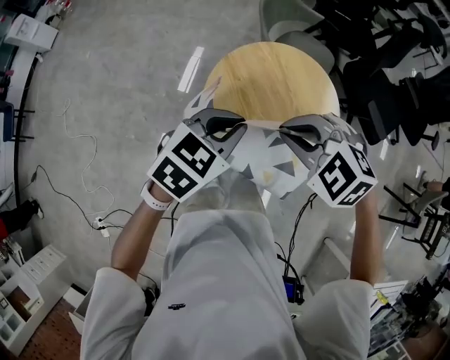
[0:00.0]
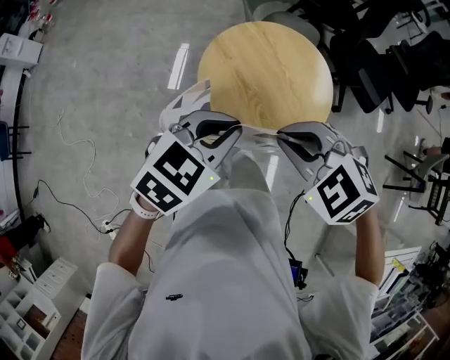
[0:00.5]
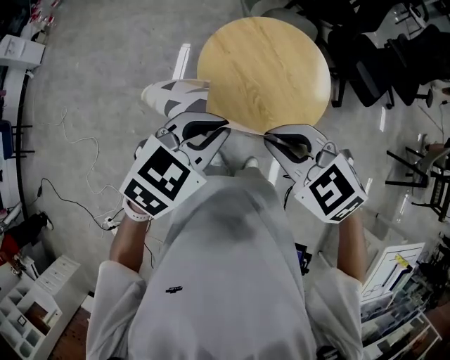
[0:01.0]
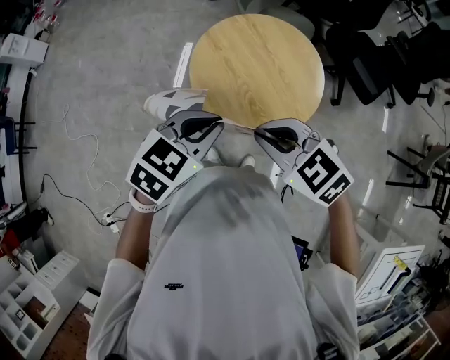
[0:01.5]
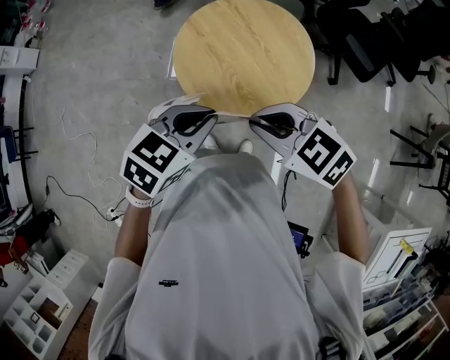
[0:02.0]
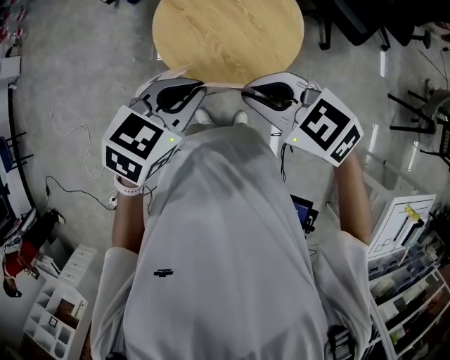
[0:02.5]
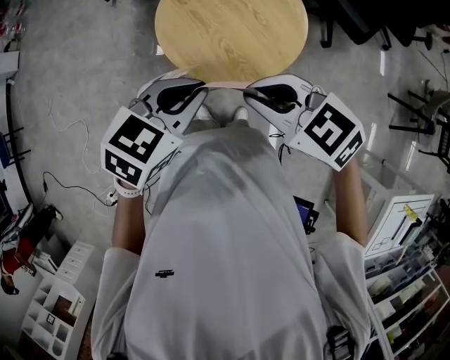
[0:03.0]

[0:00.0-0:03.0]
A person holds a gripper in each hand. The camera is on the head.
0:00.0 to 0:01.5: Both grippers move backward, roughly 15 cm. The right gripper turns by some 20 degrees.
0:01.5 to 0:03.0: The grippers move only a little.

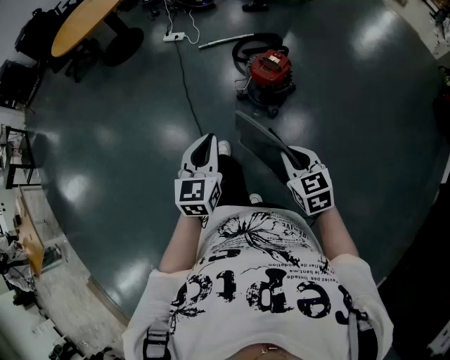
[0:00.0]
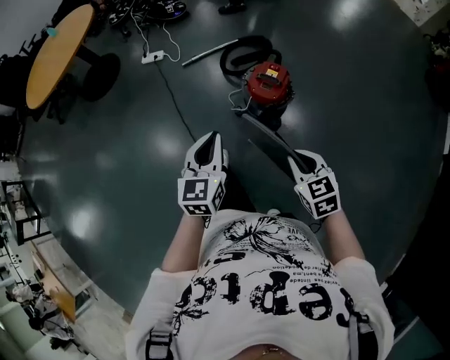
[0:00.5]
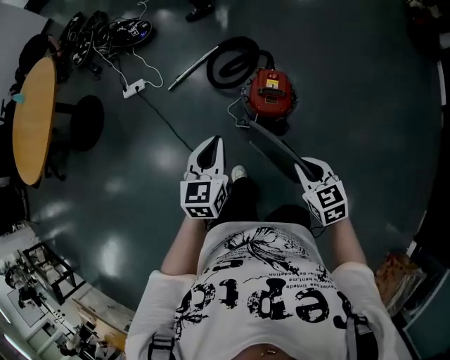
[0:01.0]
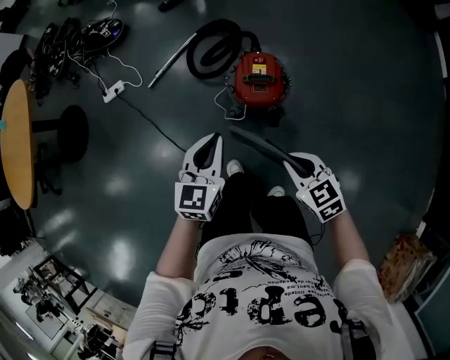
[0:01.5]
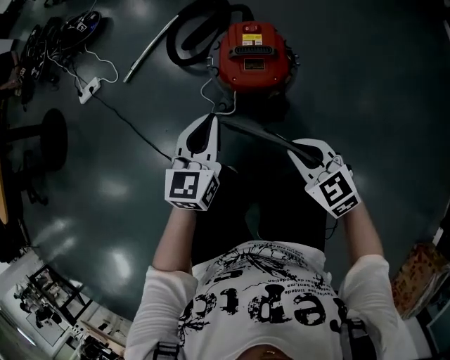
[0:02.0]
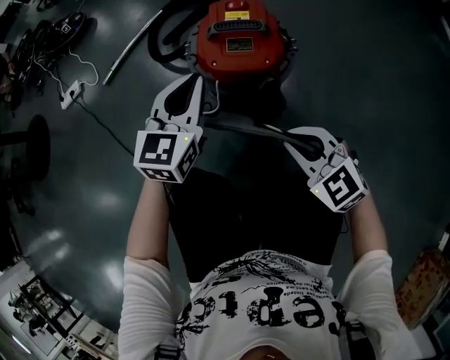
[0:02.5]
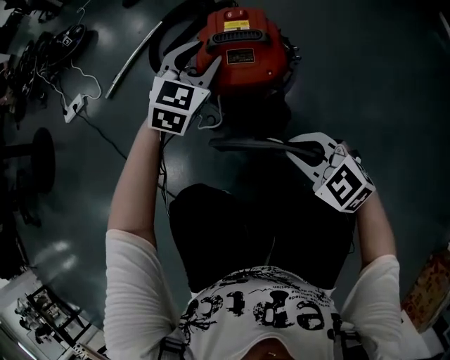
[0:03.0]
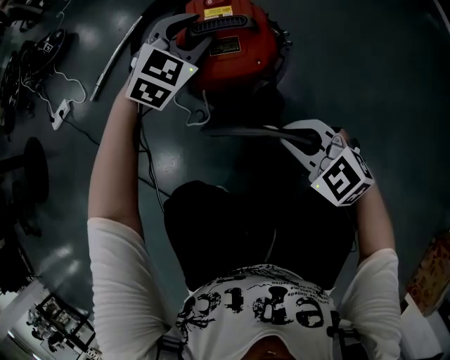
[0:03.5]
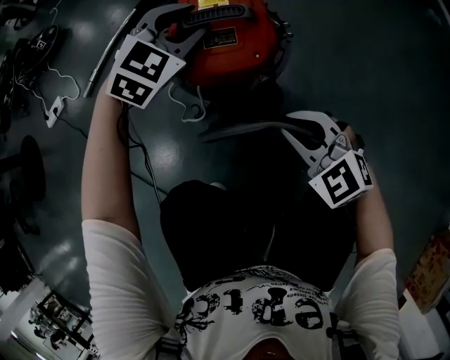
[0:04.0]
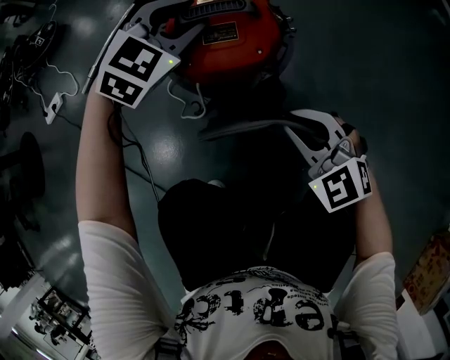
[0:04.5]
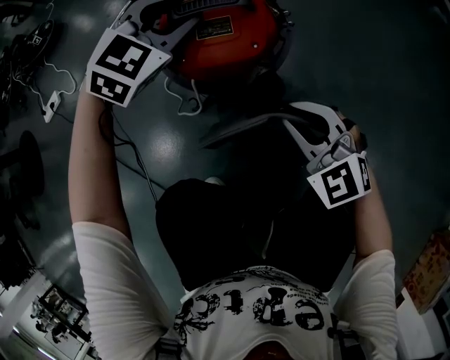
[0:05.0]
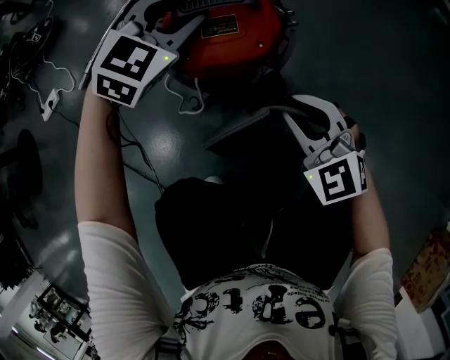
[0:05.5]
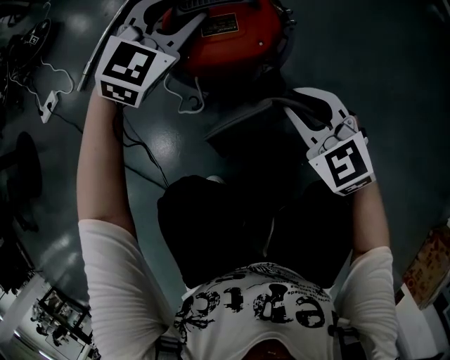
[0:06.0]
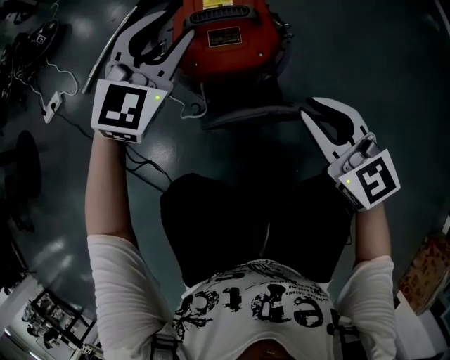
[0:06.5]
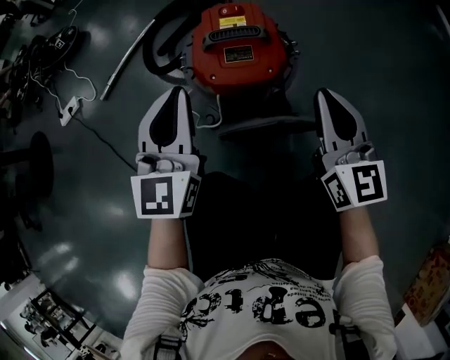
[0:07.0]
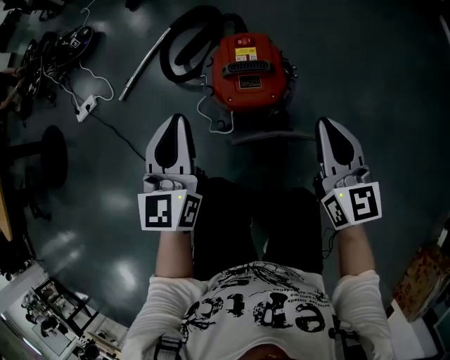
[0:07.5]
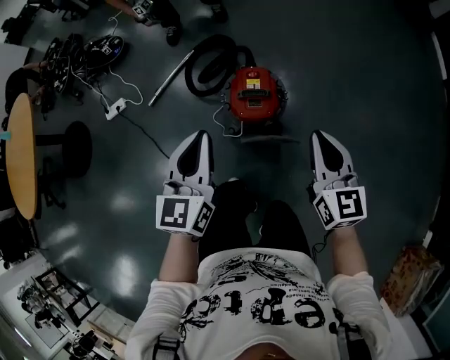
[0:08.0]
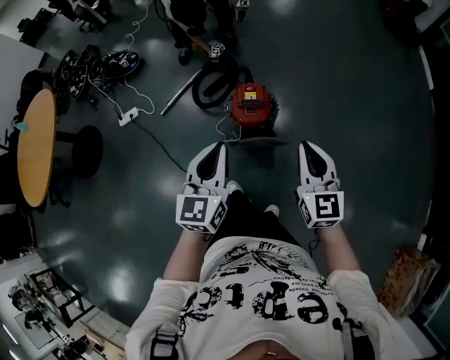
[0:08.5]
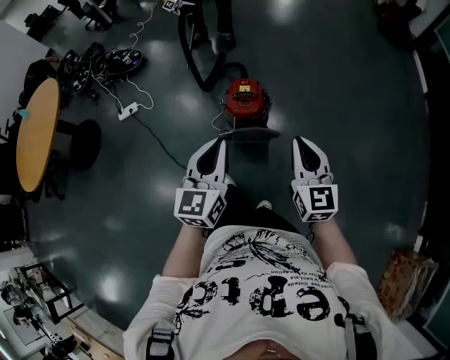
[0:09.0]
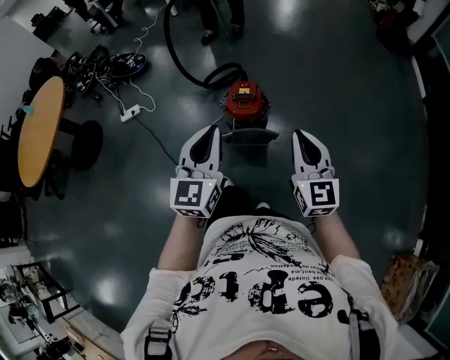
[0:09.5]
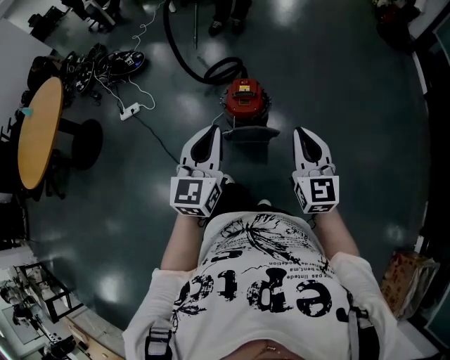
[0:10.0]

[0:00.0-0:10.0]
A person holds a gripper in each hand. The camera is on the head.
0:00.0 to 0:02.0: The left gripper moves roughly 60 cm, and turns by roughly 40 degrees. Meanwhile the right gripper is displaced downward by roughly 35 cm.
0:02.0 to 0:04.0: The right gripper heads downward, covering some 15 cm, and swivels roughly 20 degrees. Meanwhile the left gripper shifts about 25 cm forward, downward and to the right, rolls clockwise, seen from behind, by roughly 50 degrees, and opens up.
0:04.0 to 0:06.0: There are only small adjustments of the grippers.
0:06.0 to 0:08.0: The left gripper goes approximately 50 cm upward and backward, swivels about 50 degrees, and closes; the right gripper moves upward, roughly 50 cm, and rotates roughly 40 degrees.
0:08.0 to 0:10.0: The grippers both shift backward and upward by about 25 cm.

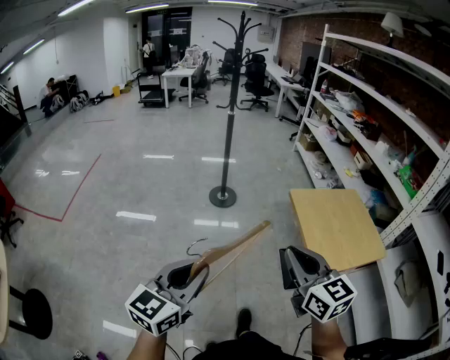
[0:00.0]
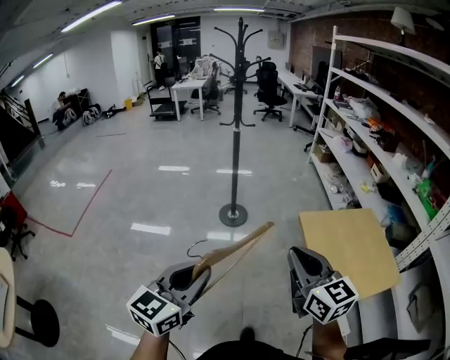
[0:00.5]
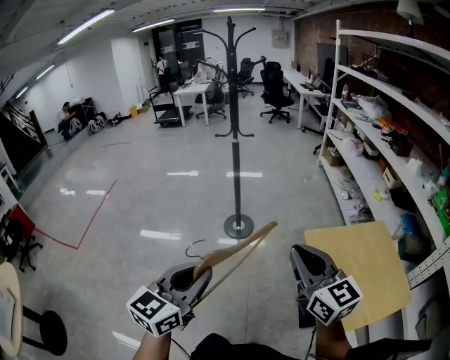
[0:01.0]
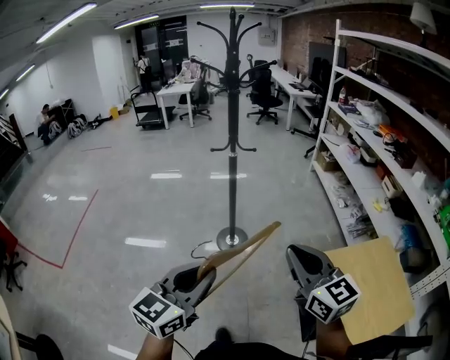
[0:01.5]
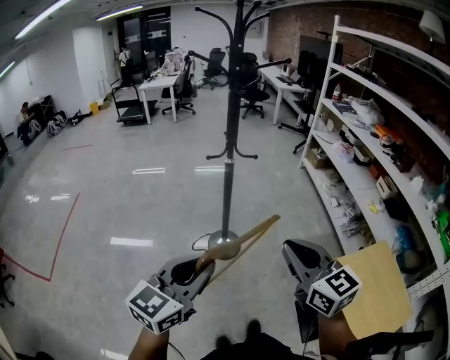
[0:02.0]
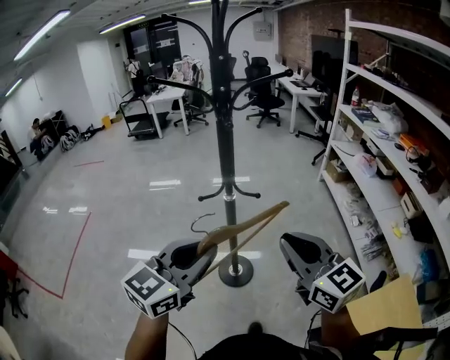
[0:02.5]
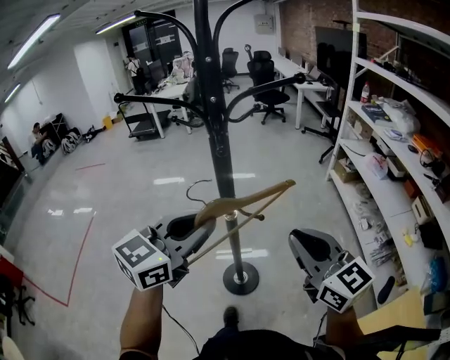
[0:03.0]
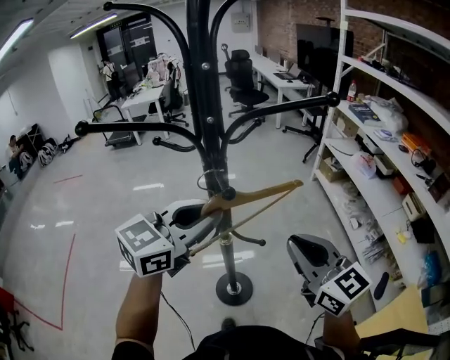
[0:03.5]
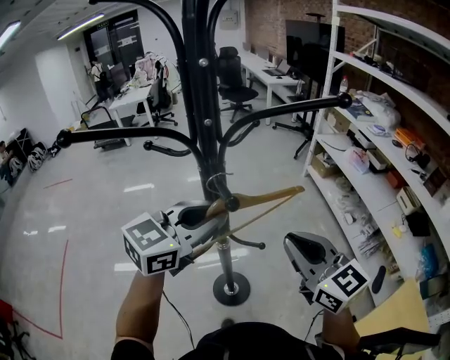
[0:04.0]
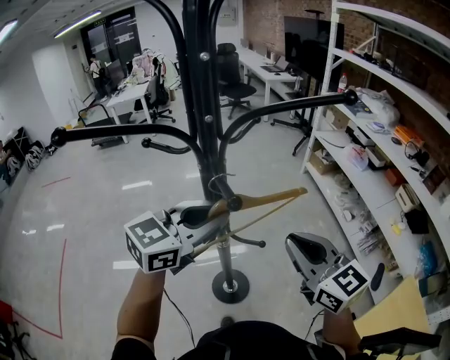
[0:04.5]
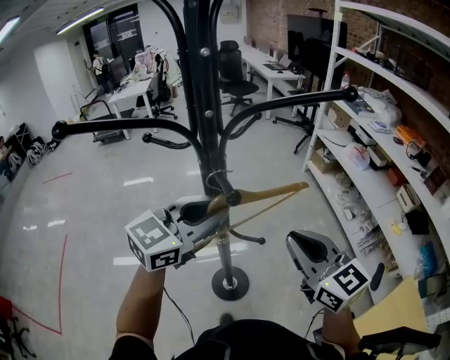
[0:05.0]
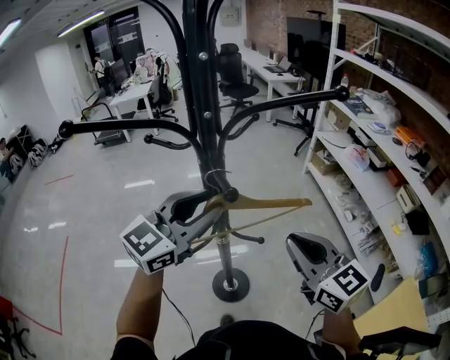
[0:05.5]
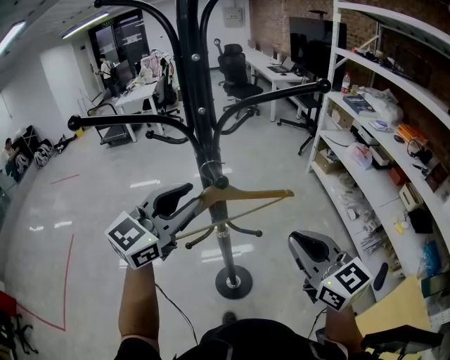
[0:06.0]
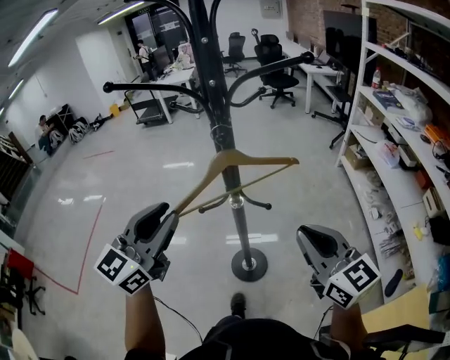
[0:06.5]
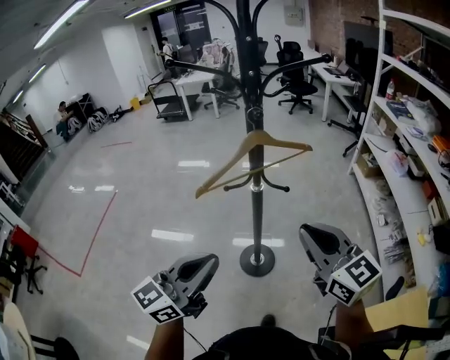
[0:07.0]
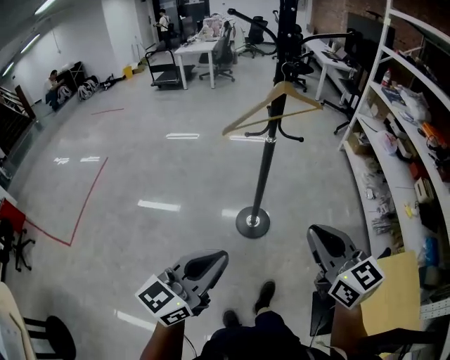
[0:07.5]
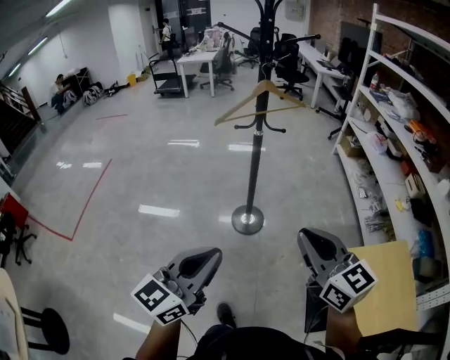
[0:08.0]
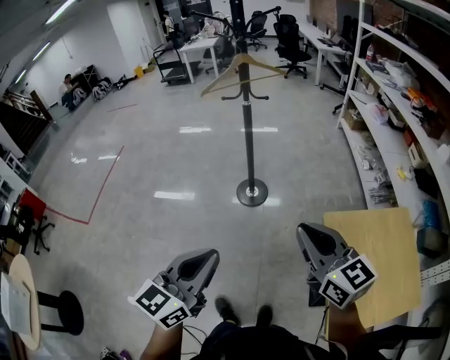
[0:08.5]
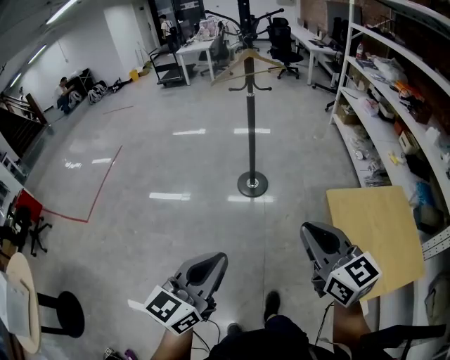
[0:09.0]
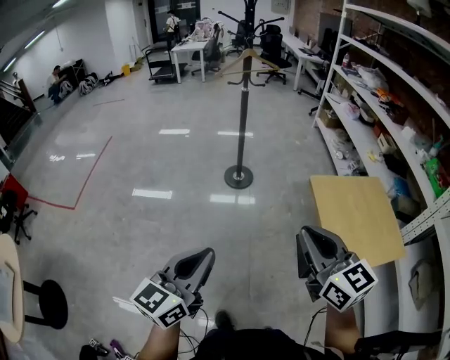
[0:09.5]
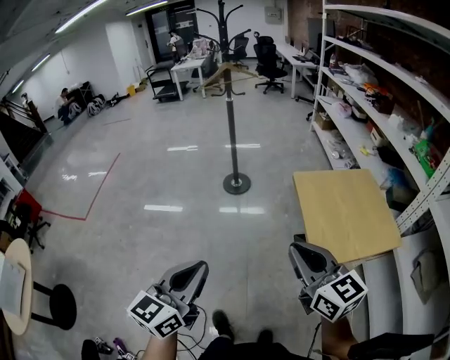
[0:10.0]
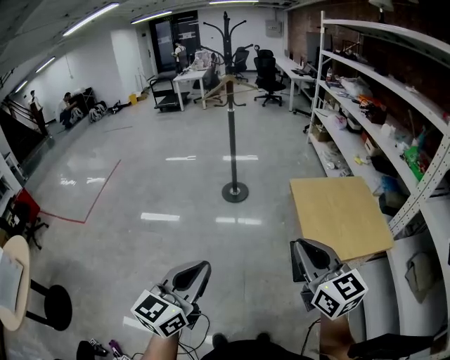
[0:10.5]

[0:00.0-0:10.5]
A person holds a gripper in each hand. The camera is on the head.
0:00.0 to 0:02.0: Both grippers are carried forward, approximately 50 cm.
0:02.0 to 0:04.0: The grippers both shift forward by about 40 cm. The left gripper swivels about 20 degrees.
0:04.0 to 0:06.5: The left gripper travels backward and to the left by some 20 cm, and swivels some 30 degrees. Meanwhile the right gripper moves backward, roughly 5 cm.
0:06.5 to 0:08.5: The pair of grippers is taken backward, some 50 cm. The left gripper closes its fingers.
0:08.5 to 0:10.5: Both grippers travel together backward, about 40 cm.

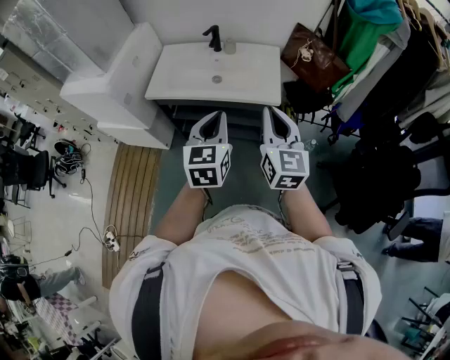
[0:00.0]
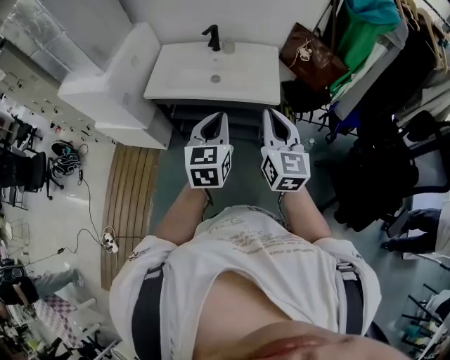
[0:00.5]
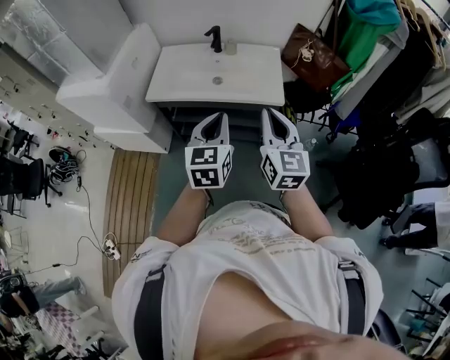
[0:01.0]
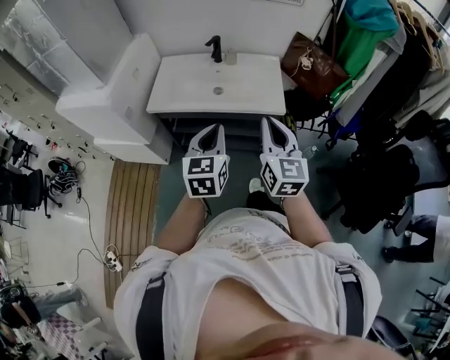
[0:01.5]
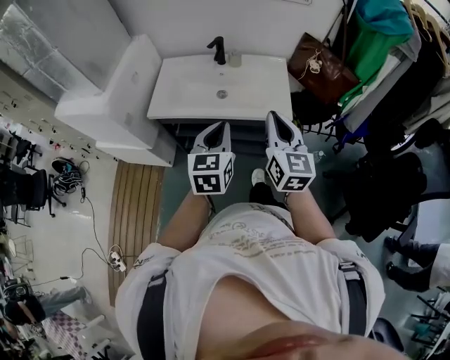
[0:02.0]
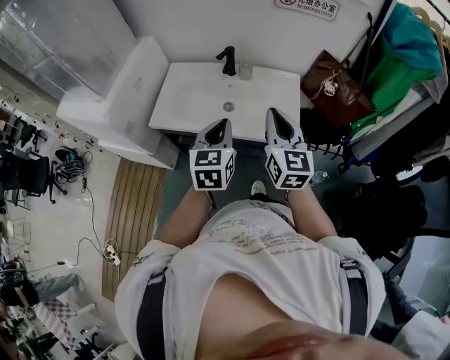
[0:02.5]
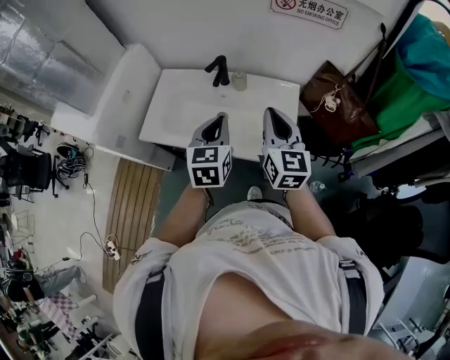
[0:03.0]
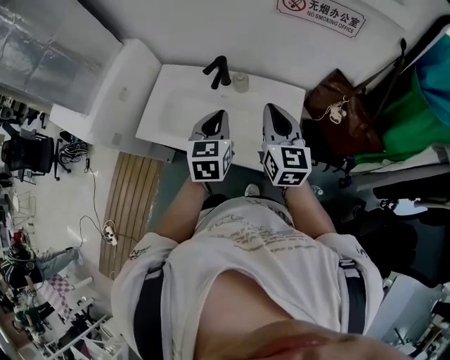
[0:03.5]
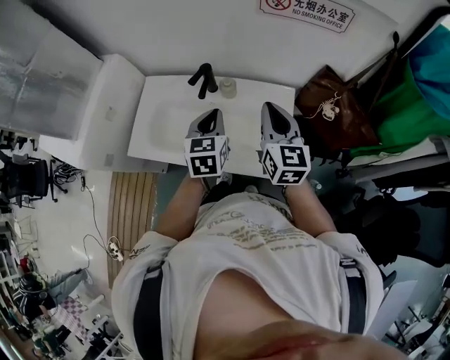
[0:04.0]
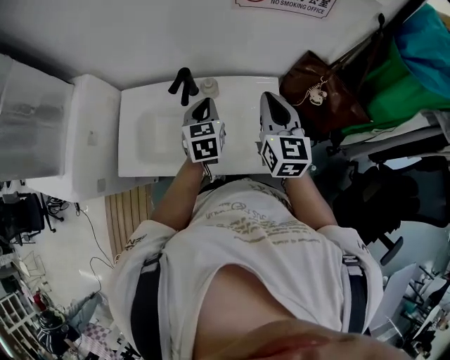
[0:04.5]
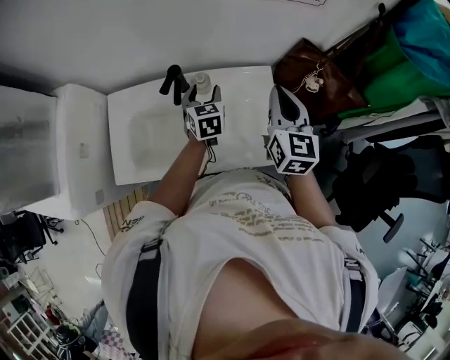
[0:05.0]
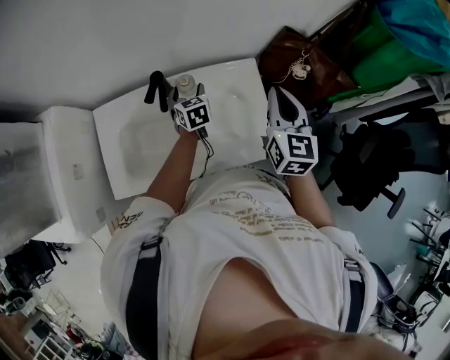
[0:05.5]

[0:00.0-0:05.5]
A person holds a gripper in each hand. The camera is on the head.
0:00.0 to 0:02.0: The grippers both shift forward by about 5 cm.
0:02.0 to 0:03.5: Both grippers travel together forward, approximately 30 cm.
0:03.5 to 0:05.5: The left gripper heads forward and downward, covering roughly 30 cm, and opens. Meanwhile the right gripper goes roughly 10 cm to the right, and turns by roughly 30 degrees.
